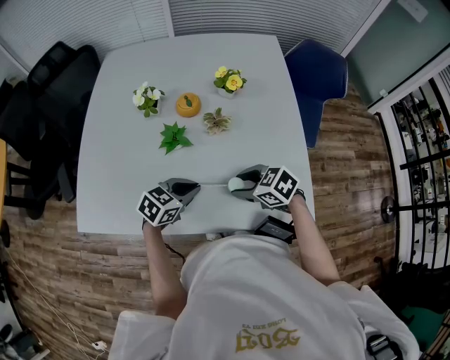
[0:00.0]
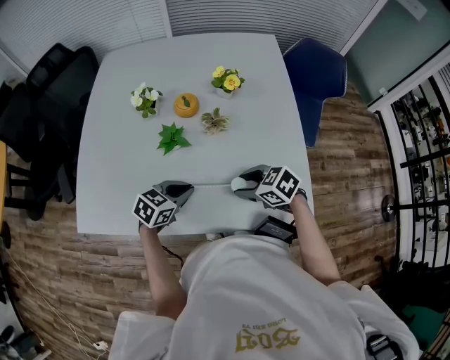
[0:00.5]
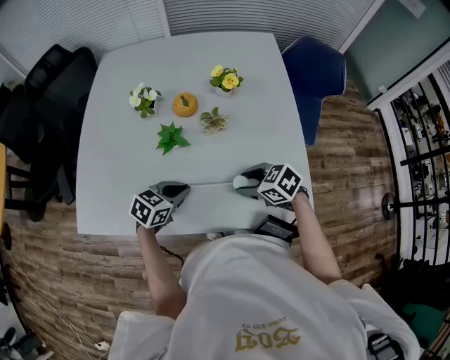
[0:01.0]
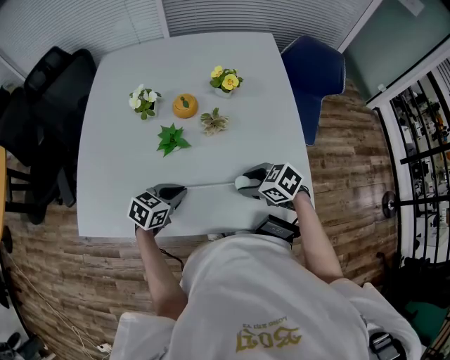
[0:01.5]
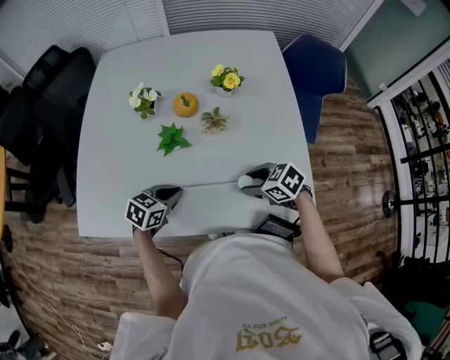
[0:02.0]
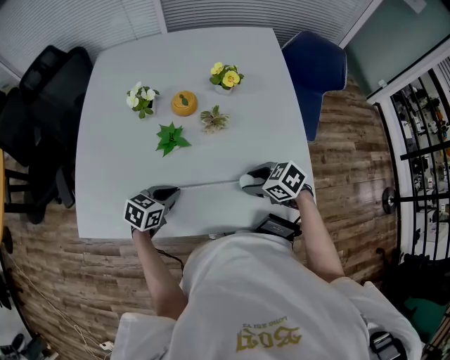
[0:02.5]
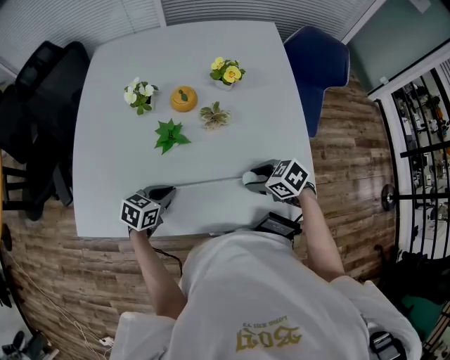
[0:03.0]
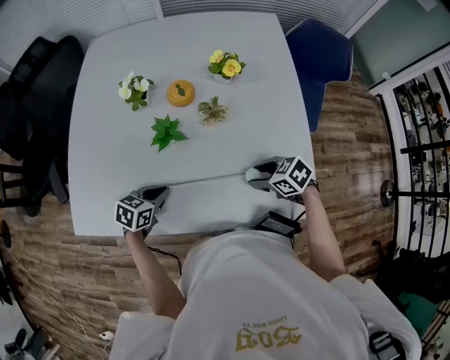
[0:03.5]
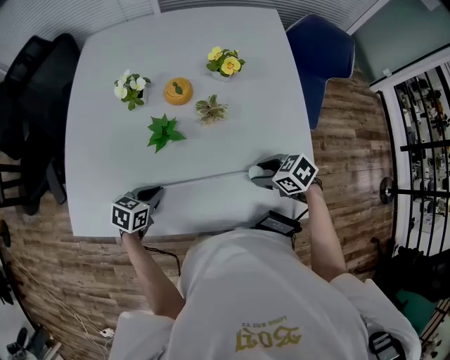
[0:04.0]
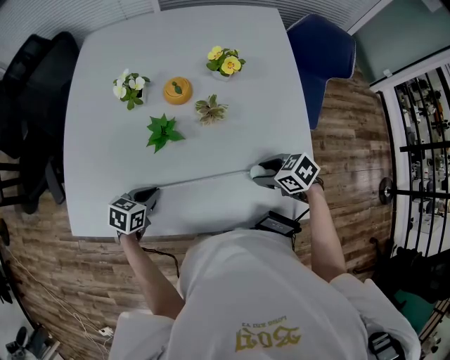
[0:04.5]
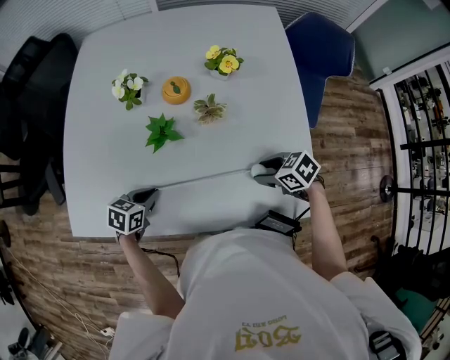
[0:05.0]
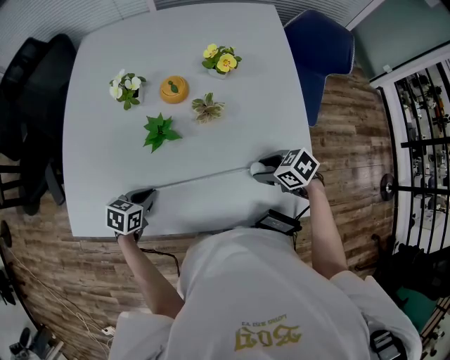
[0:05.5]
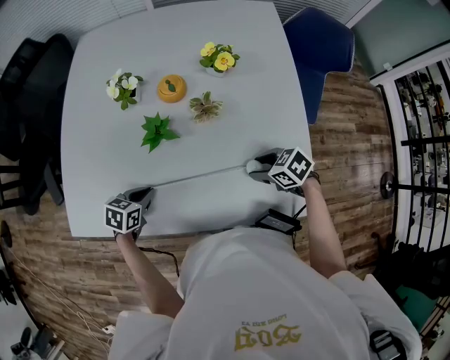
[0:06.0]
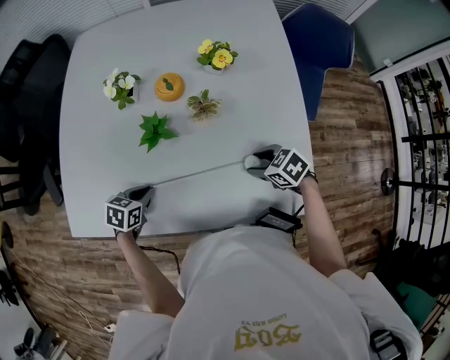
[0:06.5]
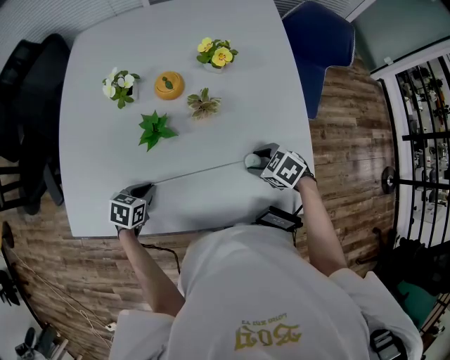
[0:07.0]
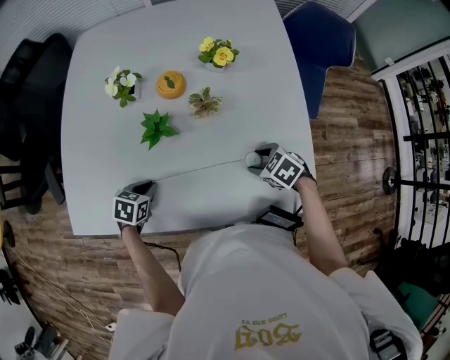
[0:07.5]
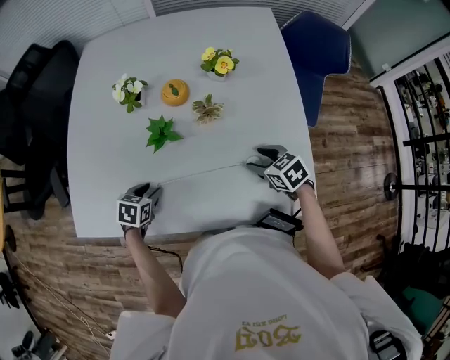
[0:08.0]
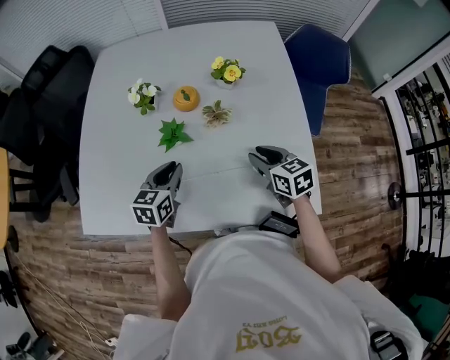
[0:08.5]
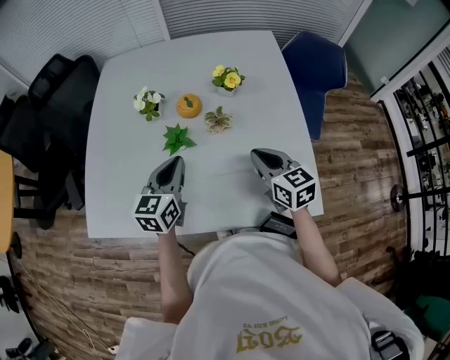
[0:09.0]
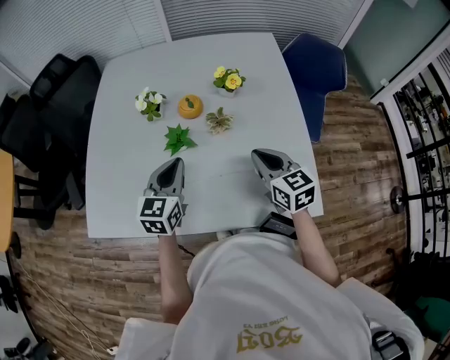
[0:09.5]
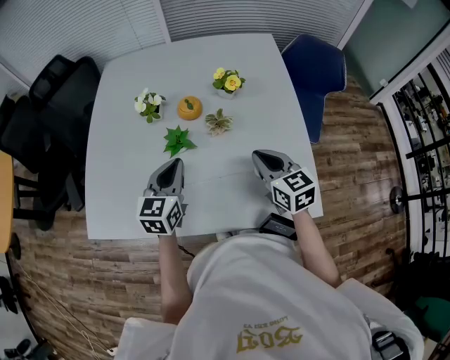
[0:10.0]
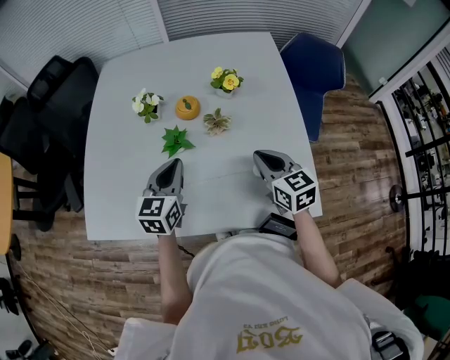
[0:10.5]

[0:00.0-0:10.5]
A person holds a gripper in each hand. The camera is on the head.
0:00.0 to 0:02.0: The left gripper changes place by some 5 cm.
0:02.0 to 0:04.0: The right gripper changes place by roughly 5 cm. The left gripper changes place by some 5 cm.
0:04.0 to 0:06.5: The grippers stay close to where they were, moving slightly.
0:06.5 to 0:08.5: The grippers both shift upward by roughly 10 cm. The left gripper rotates about 30 degrees, and opens, then closes once more. Meanwhile the right gripper changes its angle by roughly 40 degrees.
0:08.5 to 0:10.5: The two grippers go roughly 10 cm upward. The right gripper closes its fingers.

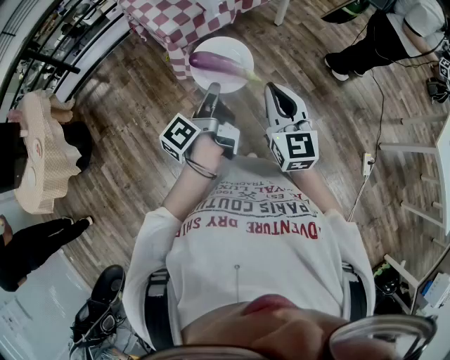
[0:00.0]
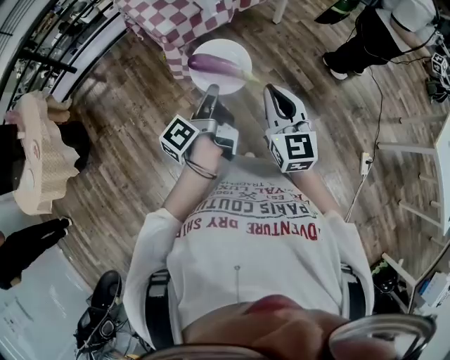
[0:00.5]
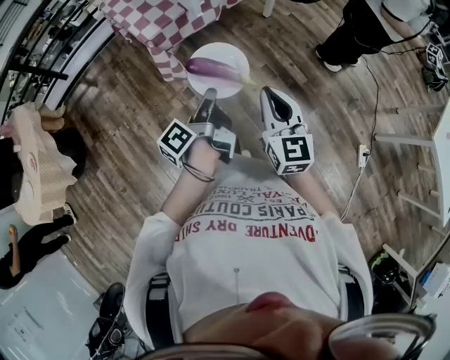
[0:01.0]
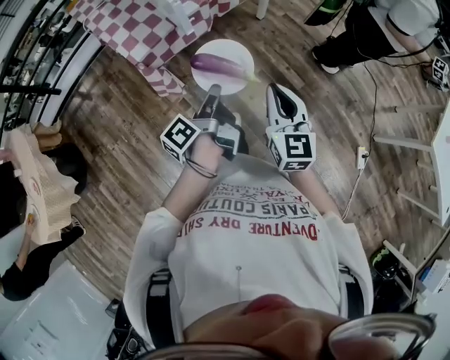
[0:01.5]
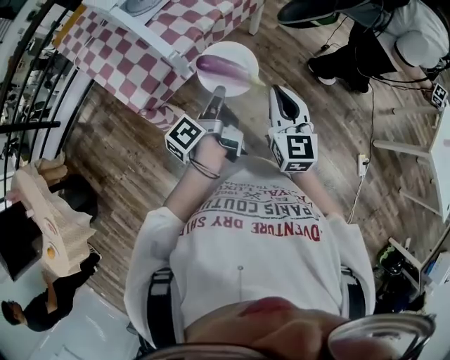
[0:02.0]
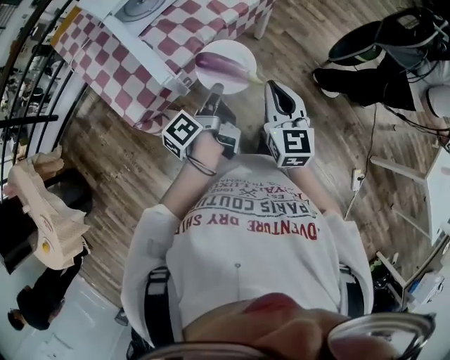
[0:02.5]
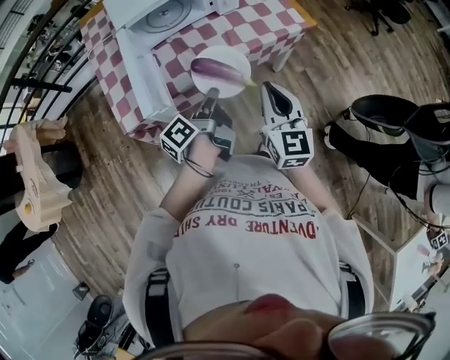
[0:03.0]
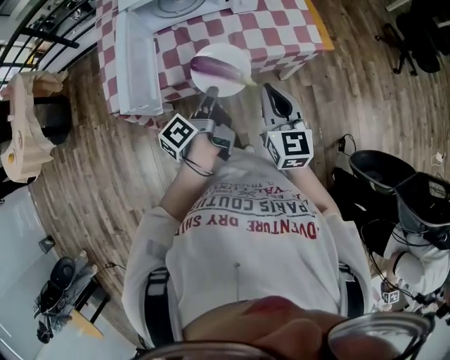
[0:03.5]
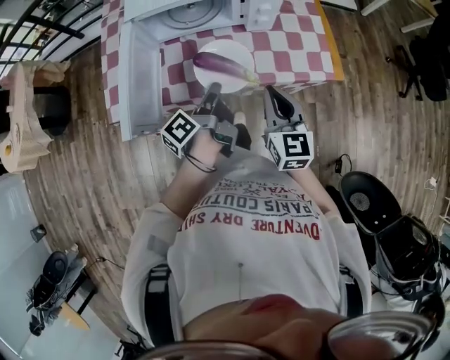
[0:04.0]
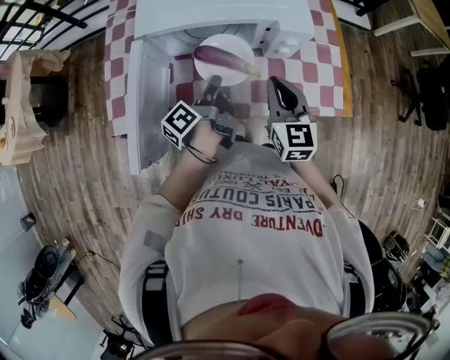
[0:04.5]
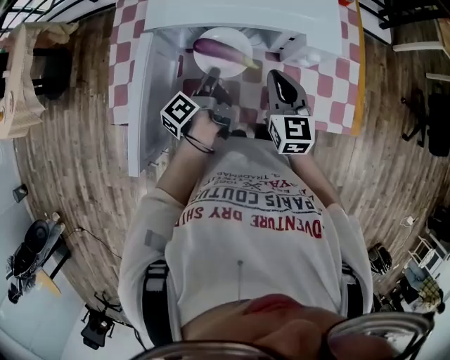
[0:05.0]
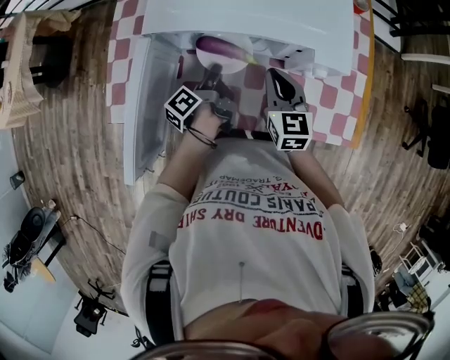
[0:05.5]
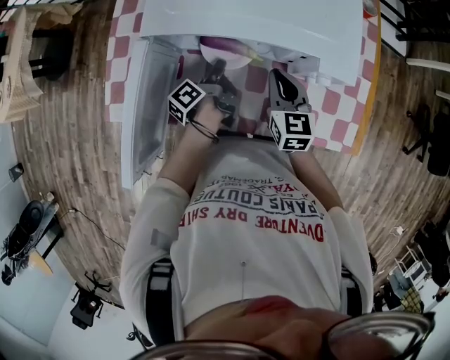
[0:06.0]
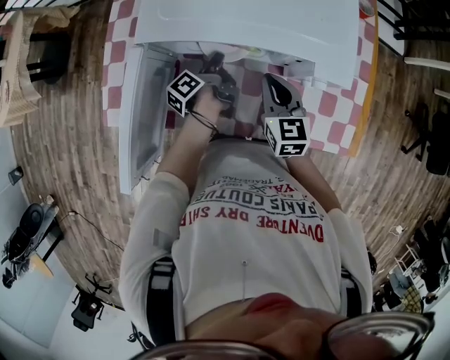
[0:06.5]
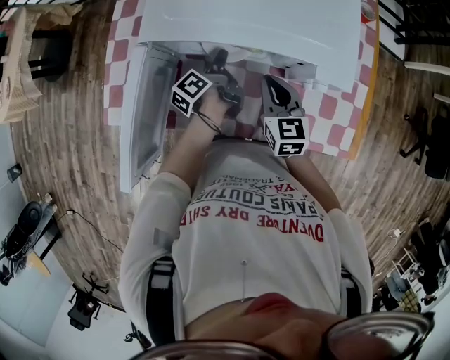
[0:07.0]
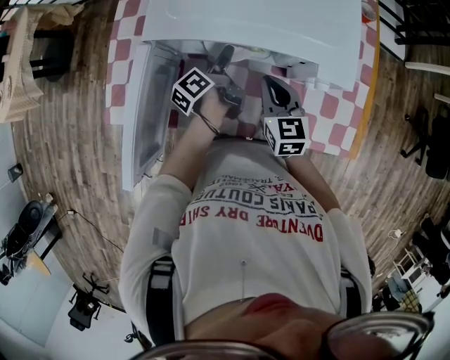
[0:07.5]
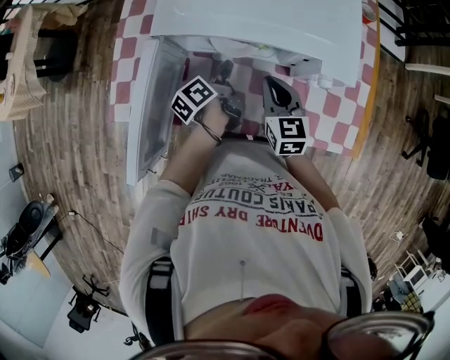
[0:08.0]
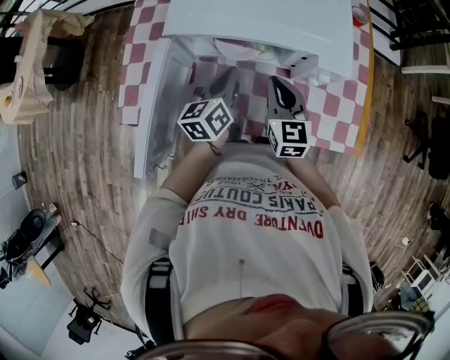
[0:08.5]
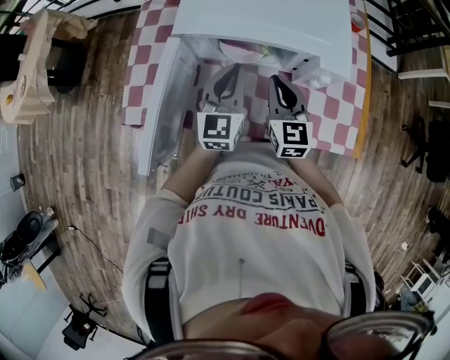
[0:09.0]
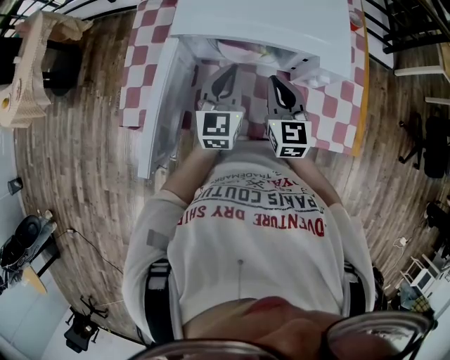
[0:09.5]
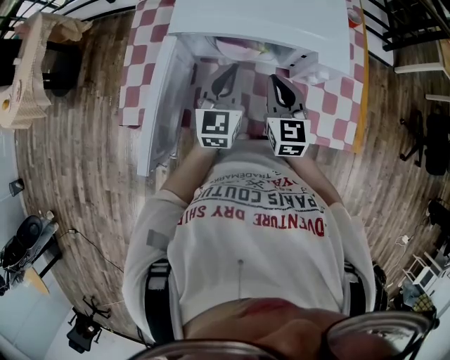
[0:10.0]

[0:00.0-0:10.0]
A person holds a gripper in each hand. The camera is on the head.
0:00.0 to 0:02.0: The right gripper changes place by approximately 35 cm.
0:02.0 to 0:04.0: The right gripper ends up some 50 cm from where it was, and changes its angle by about 40 degrees.
0:04.0 to 0:06.0: The right gripper moves roughly 30 cm.
0:08.0 to 0:10.0: The right gripper goes about 5 cm upward.

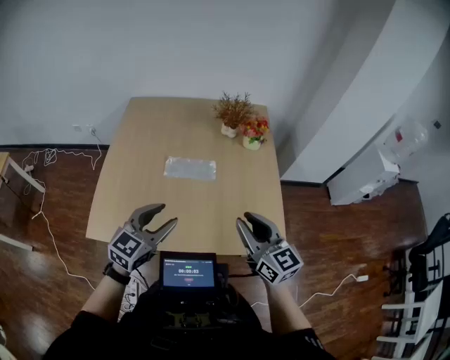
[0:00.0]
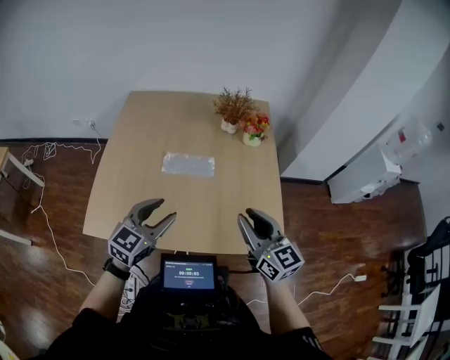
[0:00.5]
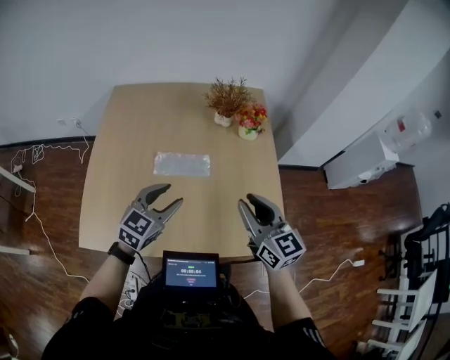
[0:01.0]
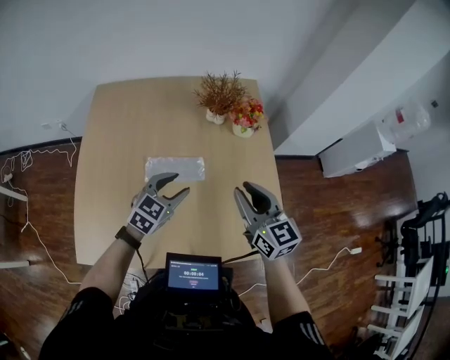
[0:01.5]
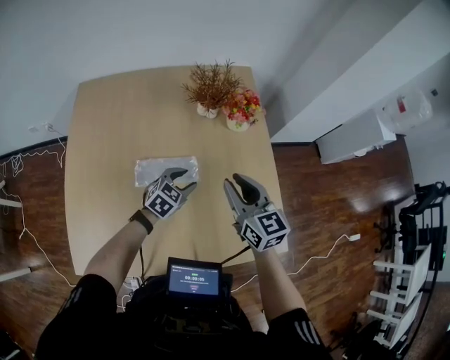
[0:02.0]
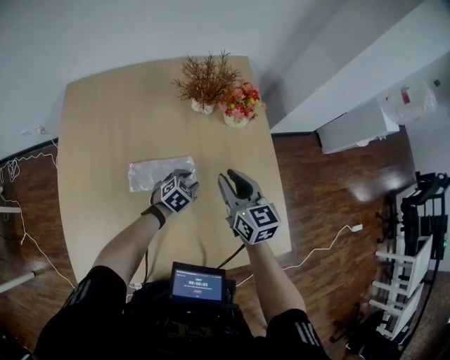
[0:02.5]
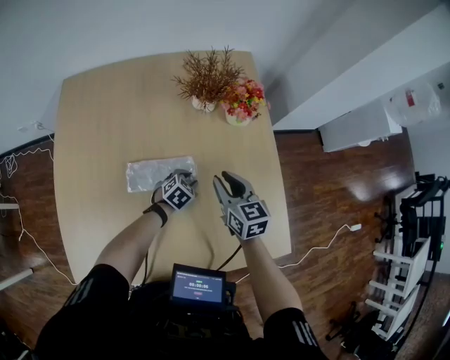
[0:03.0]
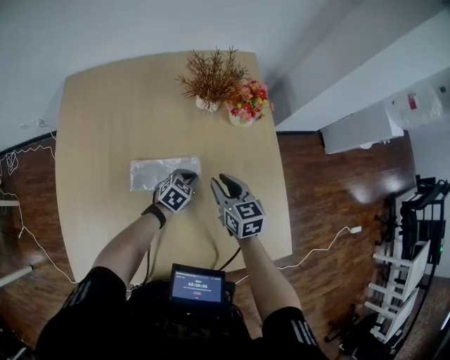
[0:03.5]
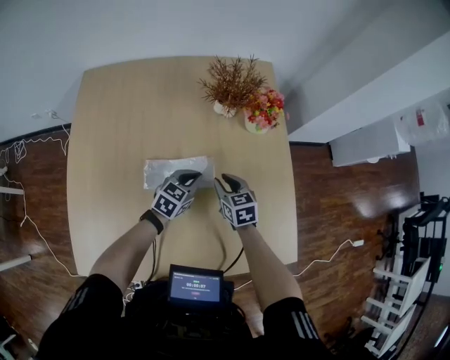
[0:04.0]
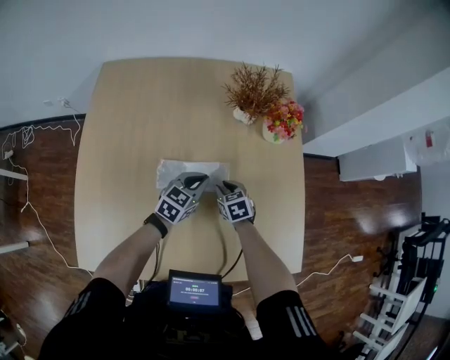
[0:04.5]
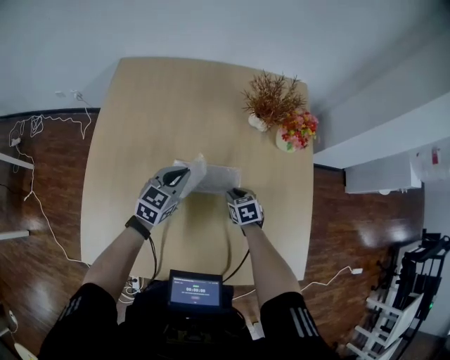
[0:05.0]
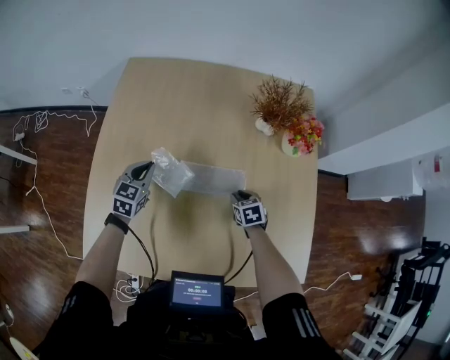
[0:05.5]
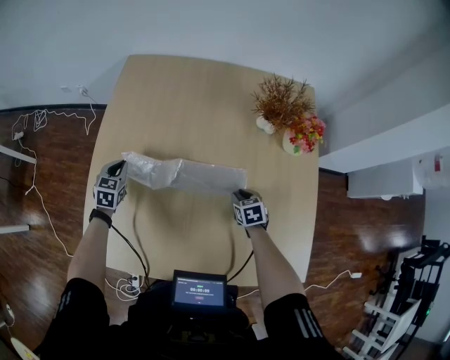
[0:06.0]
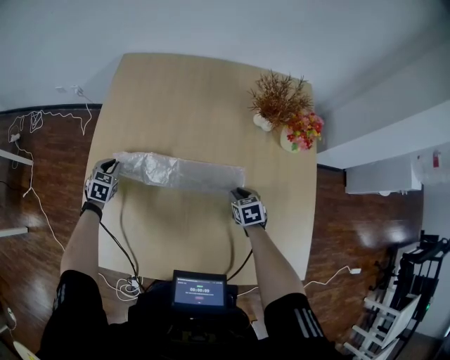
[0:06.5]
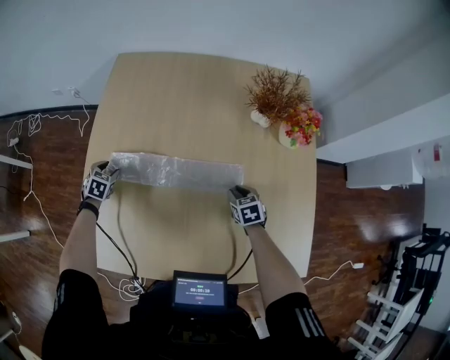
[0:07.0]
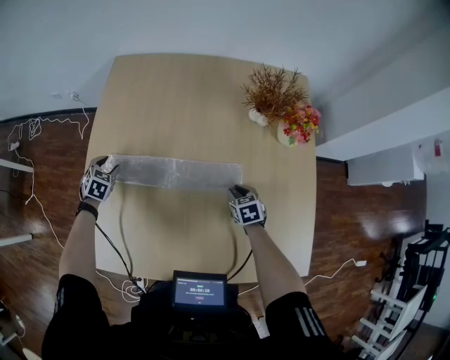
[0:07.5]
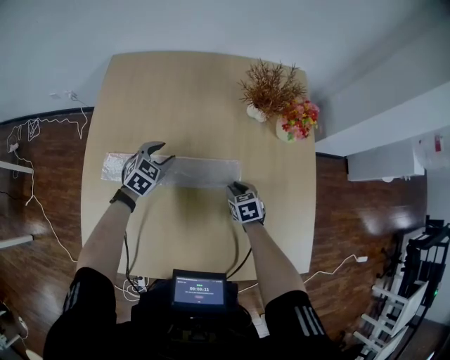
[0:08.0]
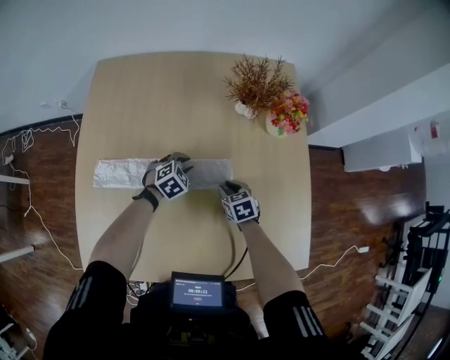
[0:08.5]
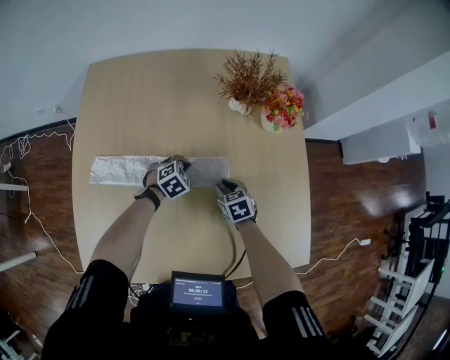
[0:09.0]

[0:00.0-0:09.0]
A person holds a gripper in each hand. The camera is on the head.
0:00.0 to 0:02.0: The left gripper moves forward and downward, roughly 35 cm, and changes its angle by some 30 degrees; the right gripper travels forward by approximately 25 cm.
0:02.0 to 0:04.5: The right gripper goes approximately 30 cm downward, and points its fingers approximately 40 degrees further downward; the left gripper goes roughly 5 cm to the left, travels downward and back again, roughly 15 cm each way, and closes.
0:04.5 to 0:07.0: The left gripper travels to the left by about 40 cm, tips its fingers downward by approximately 30 degrees, and opens.
0:07.0 to 0:09.0: The left gripper travels upward and back again, roughly 5 cm each way, swivels some 40 degrees, and closes up.
